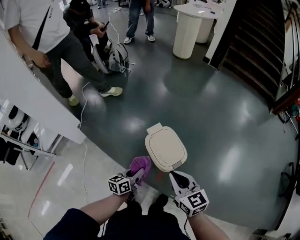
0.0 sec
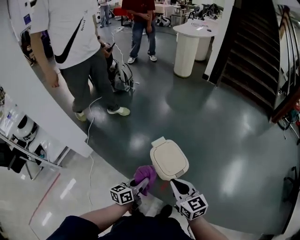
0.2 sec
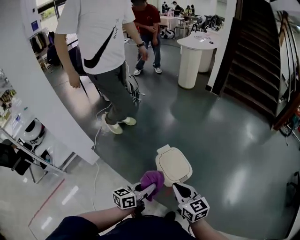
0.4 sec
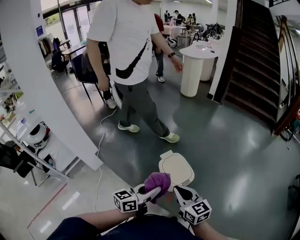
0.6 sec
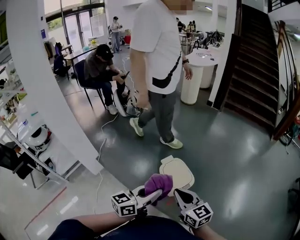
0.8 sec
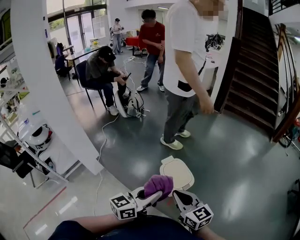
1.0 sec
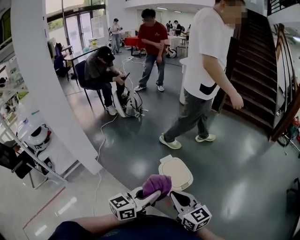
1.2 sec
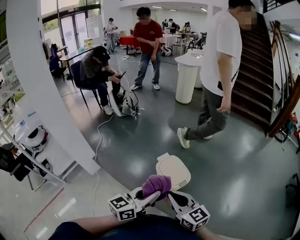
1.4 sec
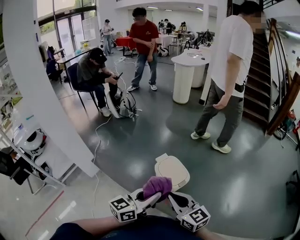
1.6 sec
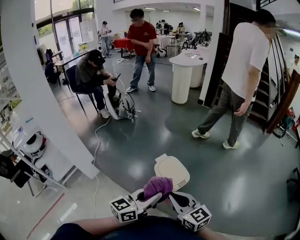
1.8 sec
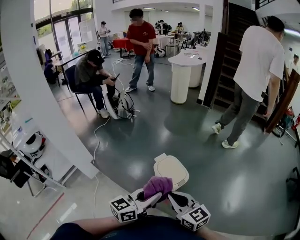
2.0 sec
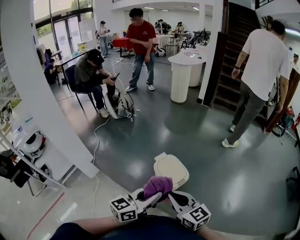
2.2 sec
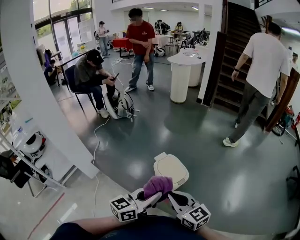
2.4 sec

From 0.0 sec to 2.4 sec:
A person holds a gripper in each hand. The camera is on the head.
From 0.0 sec to 1.2 sec: The left gripper heads upward, covering approximately 35 cm, and changes its angle by roughly 30 degrees. Meanwhile the right gripper travels upward and backward by about 20 cm.
From 1.2 sec to 2.4 sec: The grippers move only a little.

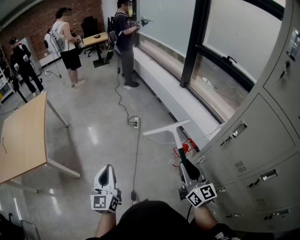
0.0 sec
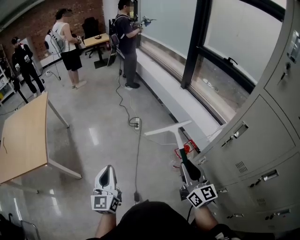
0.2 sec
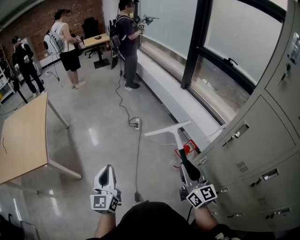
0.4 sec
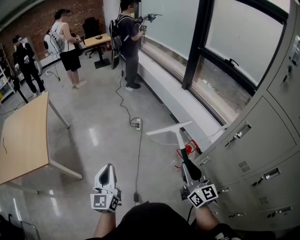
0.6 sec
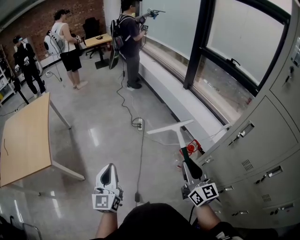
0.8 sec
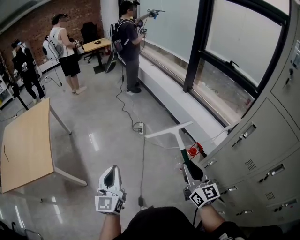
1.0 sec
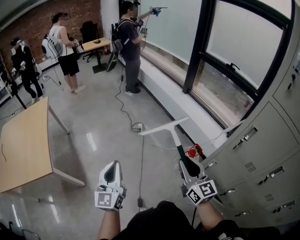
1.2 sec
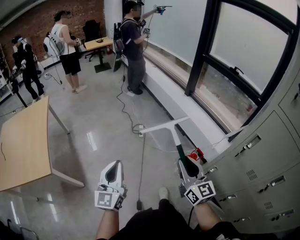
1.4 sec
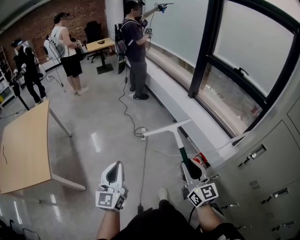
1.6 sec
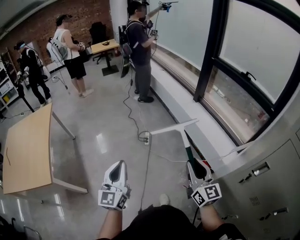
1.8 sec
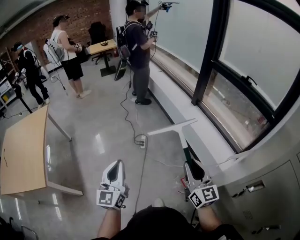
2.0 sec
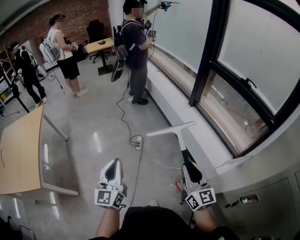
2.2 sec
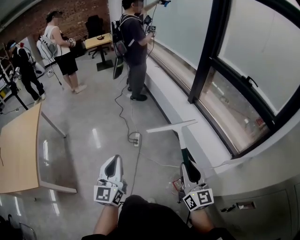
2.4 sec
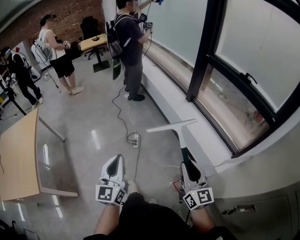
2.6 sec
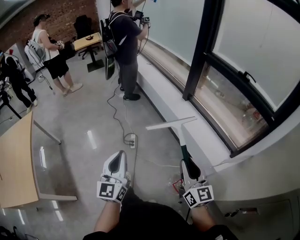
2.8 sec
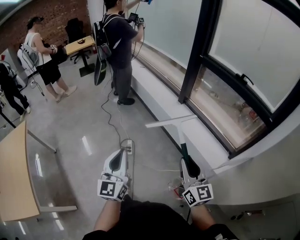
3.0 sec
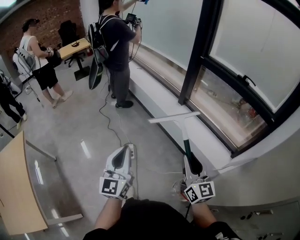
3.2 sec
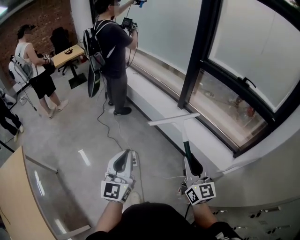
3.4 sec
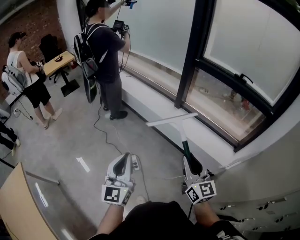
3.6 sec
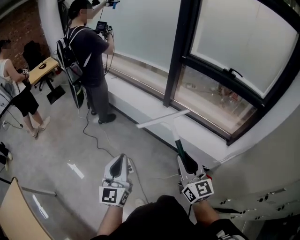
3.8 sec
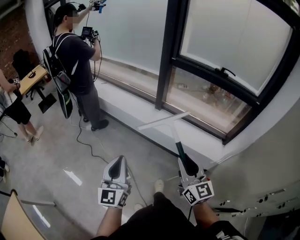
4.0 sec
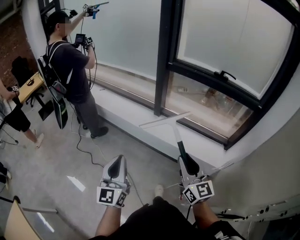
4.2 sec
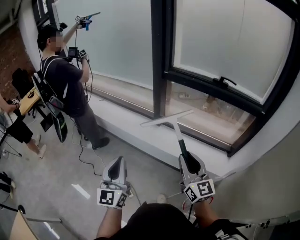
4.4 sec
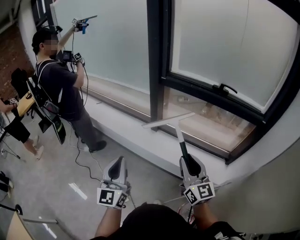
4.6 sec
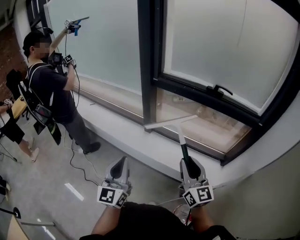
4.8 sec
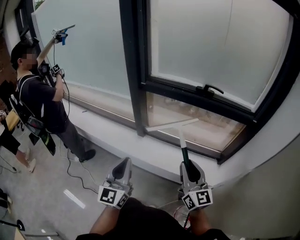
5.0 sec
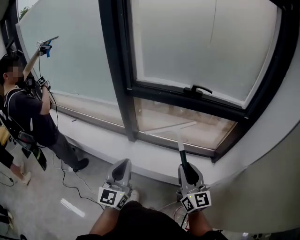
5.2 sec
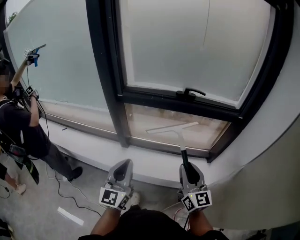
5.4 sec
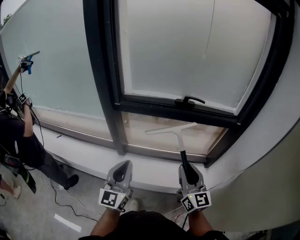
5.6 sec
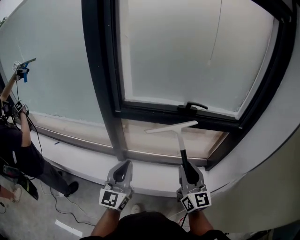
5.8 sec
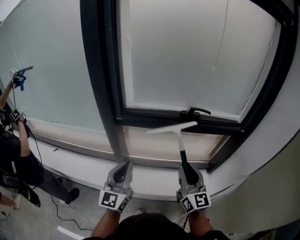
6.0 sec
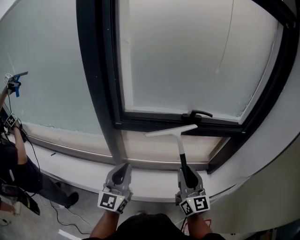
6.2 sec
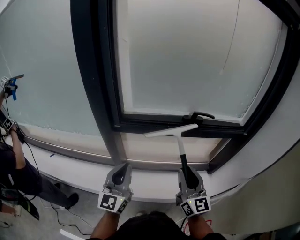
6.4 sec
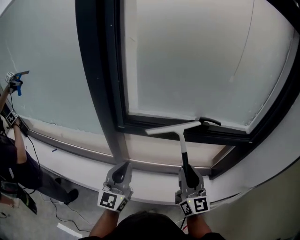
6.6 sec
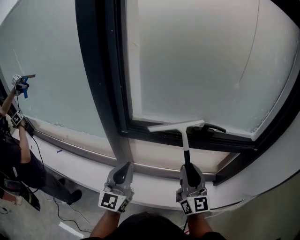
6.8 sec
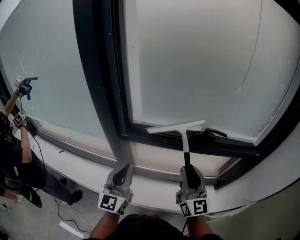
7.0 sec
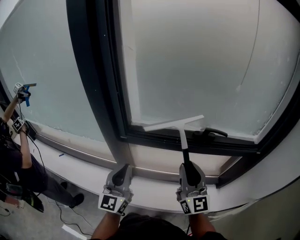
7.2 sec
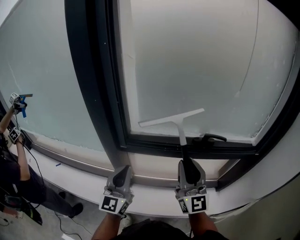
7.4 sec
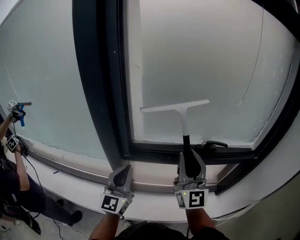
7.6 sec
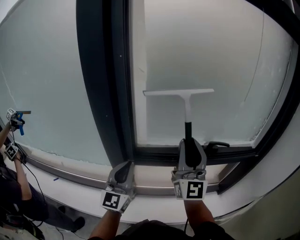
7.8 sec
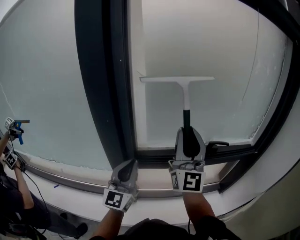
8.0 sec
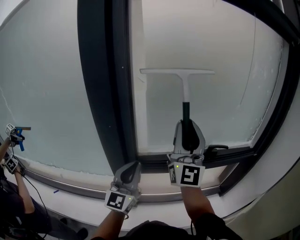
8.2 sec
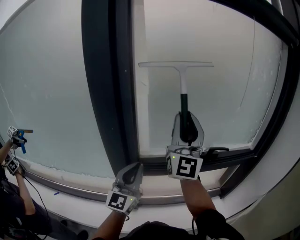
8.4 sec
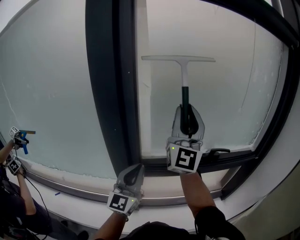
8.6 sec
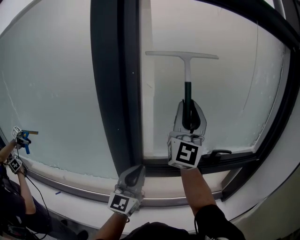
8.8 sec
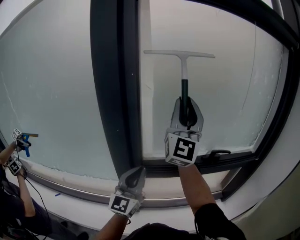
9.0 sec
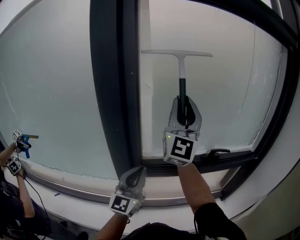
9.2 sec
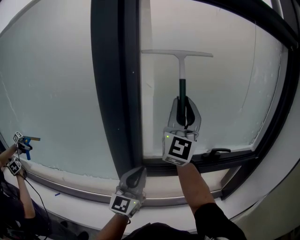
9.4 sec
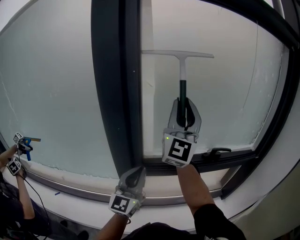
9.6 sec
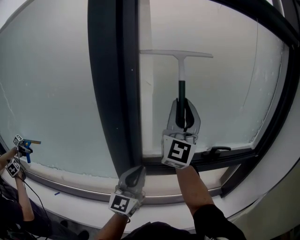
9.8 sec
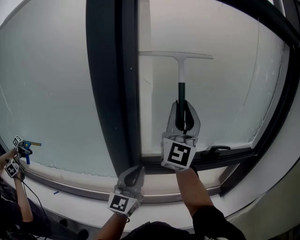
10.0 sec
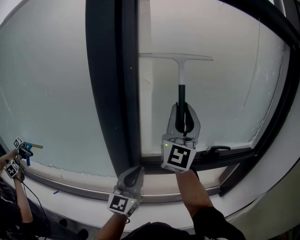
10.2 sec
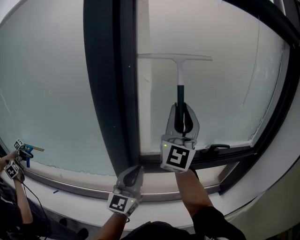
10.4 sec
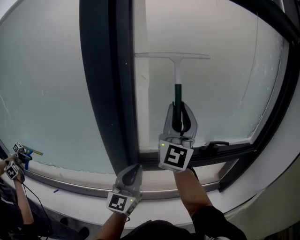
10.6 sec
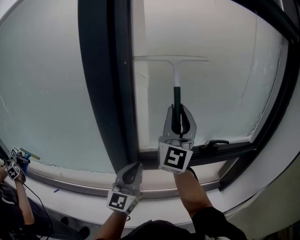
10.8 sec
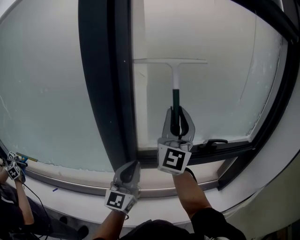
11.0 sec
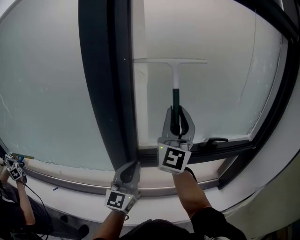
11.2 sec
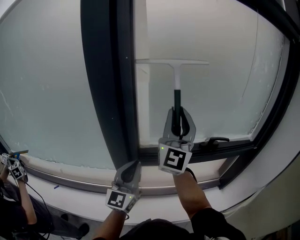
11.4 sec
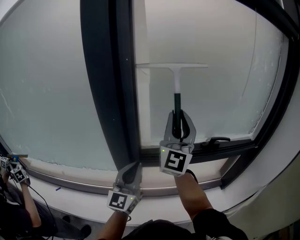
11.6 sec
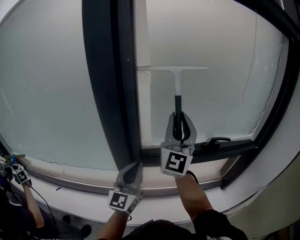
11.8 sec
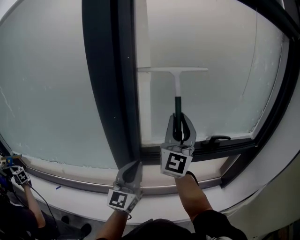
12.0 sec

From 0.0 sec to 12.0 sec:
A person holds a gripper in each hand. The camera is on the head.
From 0.0 sec to 1.6 sec: The right gripper travels forward and to the left by about 15 cm. The left gripper moves forward, roughly 15 cm.
From 1.6 sec to 3.0 sec: The grippers both shift forward and to the right by approximately 30 cm.
From 3.0 sec to 4.4 sec: Both grippers move forward, approximately 30 cm. The left gripper rotates about 20 degrees; the right gripper turns by roughly 20 degrees.
From 4.4 sec to 6.0 sec: The left gripper moves approximately 40 cm, and rotates some 30 degrees. The right gripper shifts by roughly 25 cm, and swivels about 30 degrees.
From 6.0 sec to 7.6 sec: The left gripper shifts about 15 cm forward; the right gripper heads forward, upward and to the left, covering about 25 cm, and turns by roughly 20 degrees.
From 7.6 sec to 9.0 sec: The left gripper shifts some 5 cm upward; the right gripper moves upward and to the left, some 20 cm, and changes its angle by roughly 20 degrees.
From 9.0 sec to 10.4 sec: The grippers move only a little.
From 10.4 sec to 12.0 sec: The right gripper travels downward by roughly 5 cm.

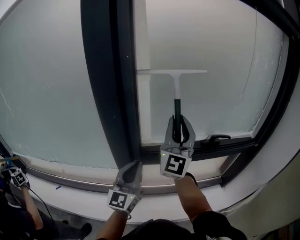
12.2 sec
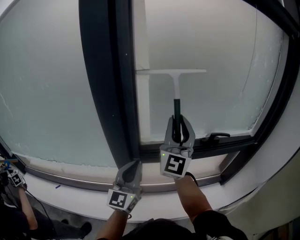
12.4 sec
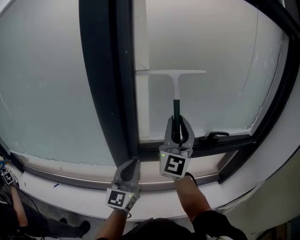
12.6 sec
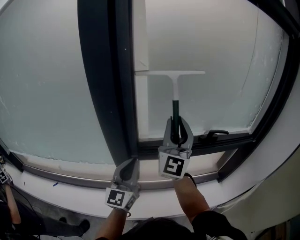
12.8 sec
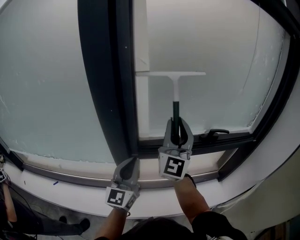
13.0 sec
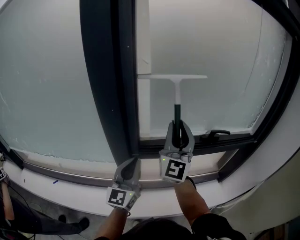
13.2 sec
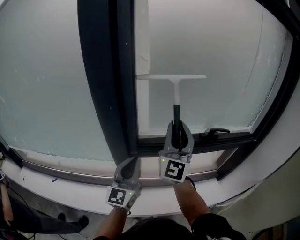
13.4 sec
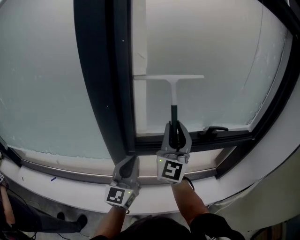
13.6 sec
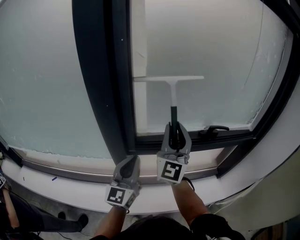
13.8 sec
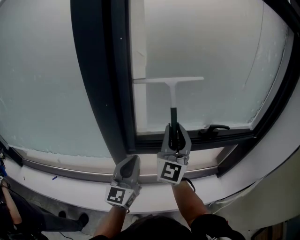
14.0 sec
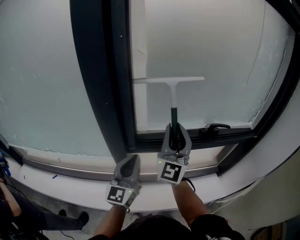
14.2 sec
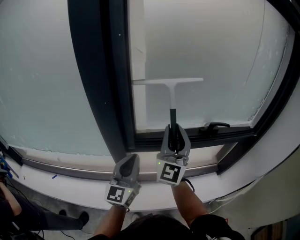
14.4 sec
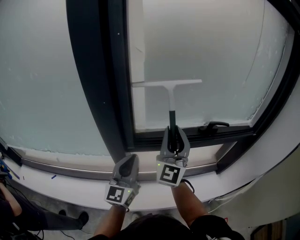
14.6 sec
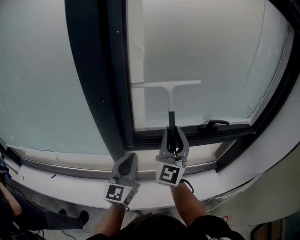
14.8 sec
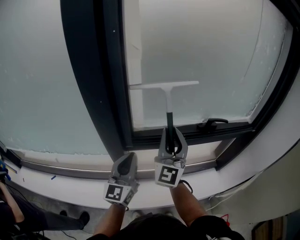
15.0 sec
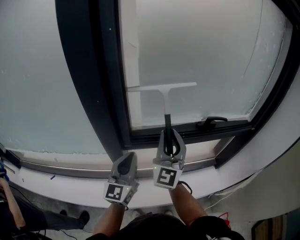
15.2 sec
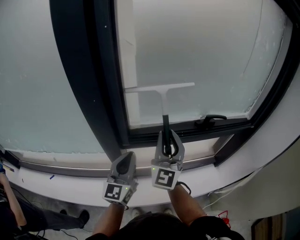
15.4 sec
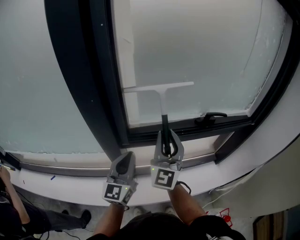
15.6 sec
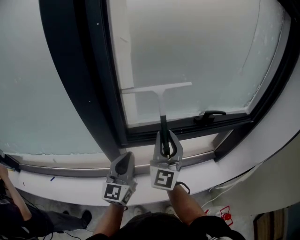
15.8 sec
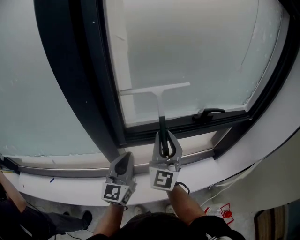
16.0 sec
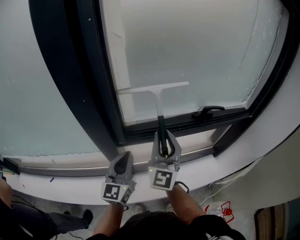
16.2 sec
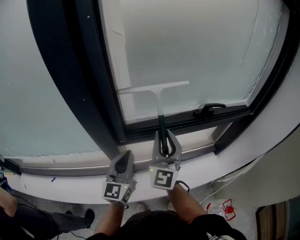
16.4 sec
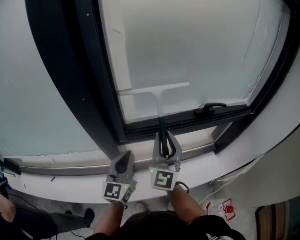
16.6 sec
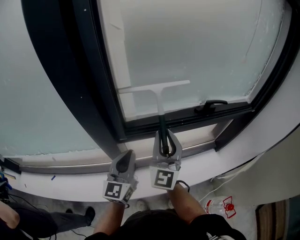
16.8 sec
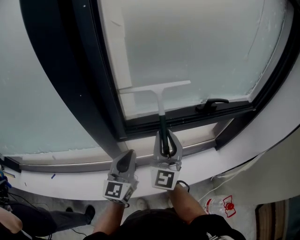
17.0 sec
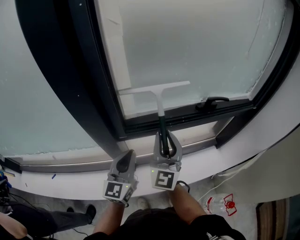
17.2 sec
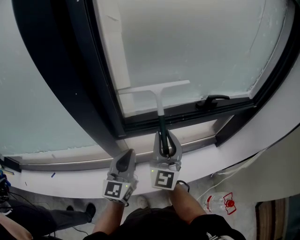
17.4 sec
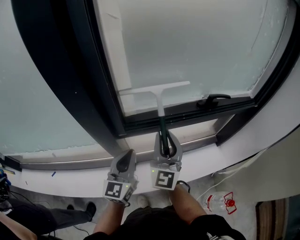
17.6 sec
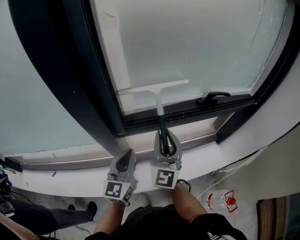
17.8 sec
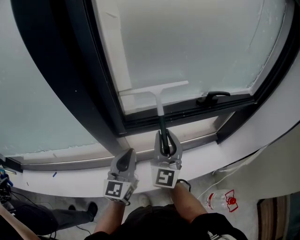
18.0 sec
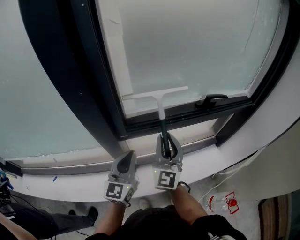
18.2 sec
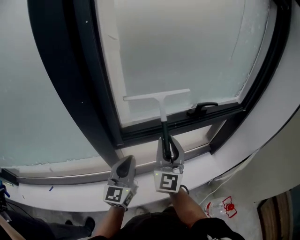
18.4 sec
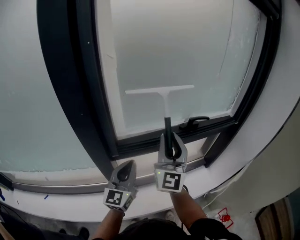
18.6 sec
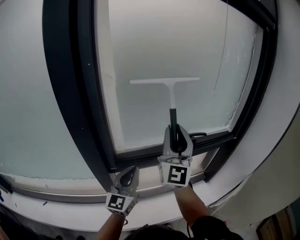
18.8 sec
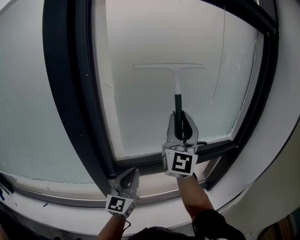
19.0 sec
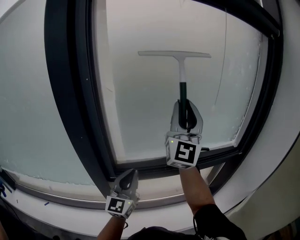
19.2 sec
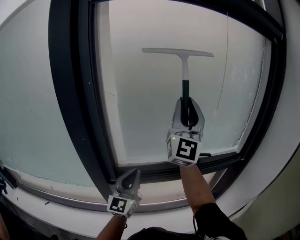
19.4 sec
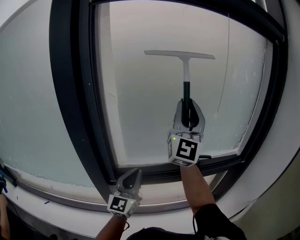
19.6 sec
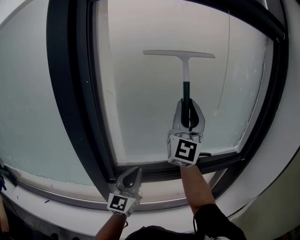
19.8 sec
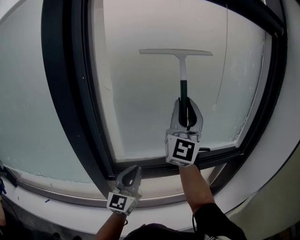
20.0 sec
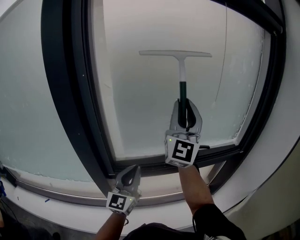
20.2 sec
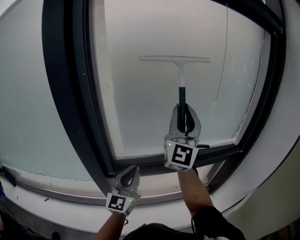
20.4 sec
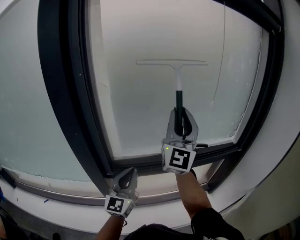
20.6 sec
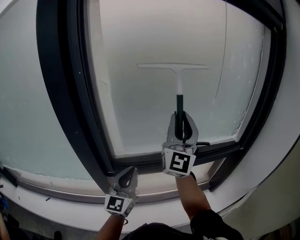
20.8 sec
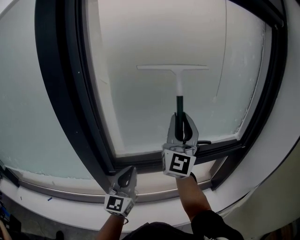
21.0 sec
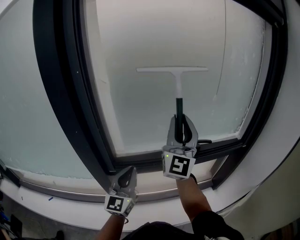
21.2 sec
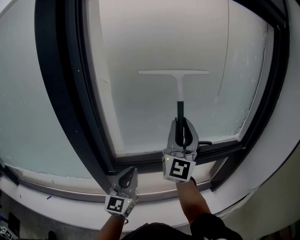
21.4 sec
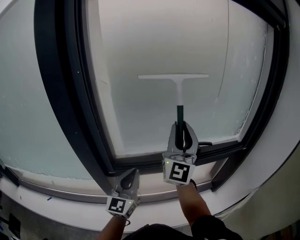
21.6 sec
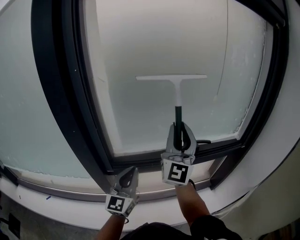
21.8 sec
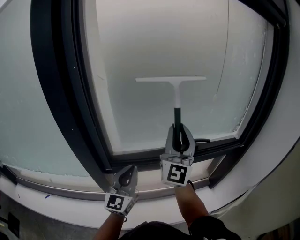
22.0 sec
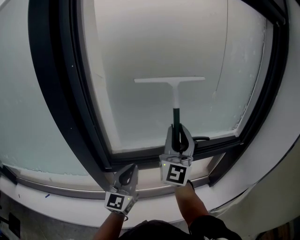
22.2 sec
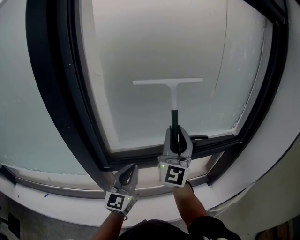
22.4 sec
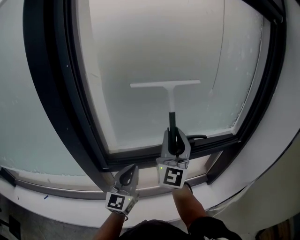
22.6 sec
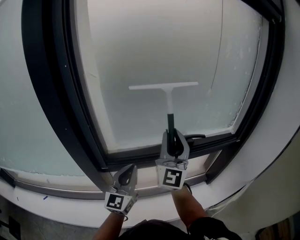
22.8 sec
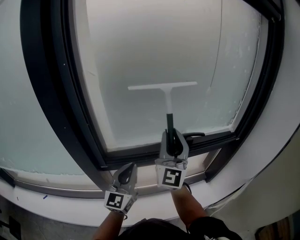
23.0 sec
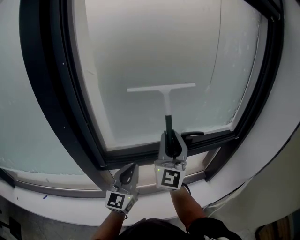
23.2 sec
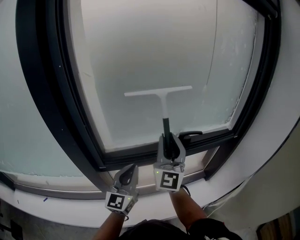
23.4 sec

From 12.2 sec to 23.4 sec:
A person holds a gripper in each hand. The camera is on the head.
From 12.2 sec to 13.8 sec: The right gripper travels downward by about 5 cm.
From 13.8 sec to 15.4 sec: The right gripper heads downward, covering approximately 5 cm.
From 15.4 sec to 17.0 sec: The right gripper moves downward, approximately 5 cm.
From 17.0 sec to 18.6 sec: The right gripper travels upward and to the right by some 10 cm. Meanwhile the left gripper changes place by roughly 5 cm.
From 18.6 sec to 20.2 sec: The left gripper travels upward and forward by some 10 cm. The right gripper travels upward and forward by some 20 cm.
From 20.2 sec to 21.8 sec: The right gripper moves downward, some 10 cm.
From 21.8 sec to 23.4 sec: The right gripper heads downward, covering approximately 5 cm.
